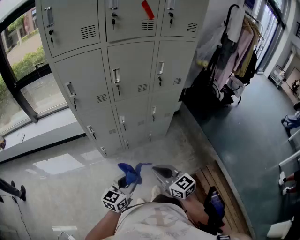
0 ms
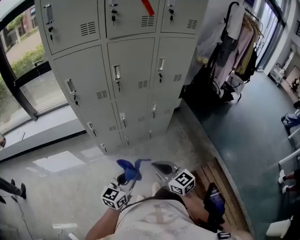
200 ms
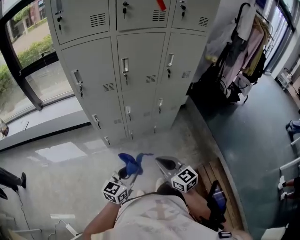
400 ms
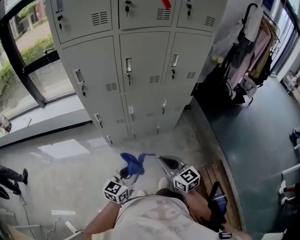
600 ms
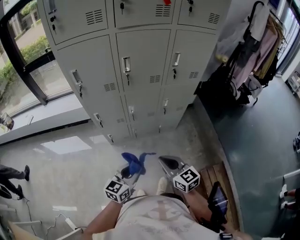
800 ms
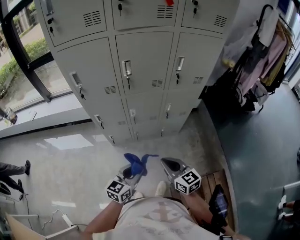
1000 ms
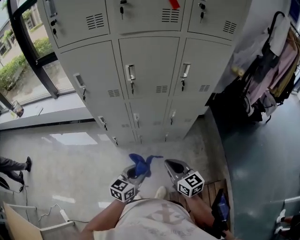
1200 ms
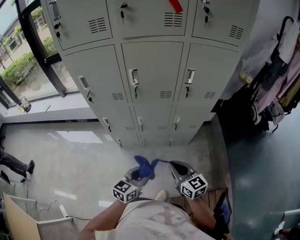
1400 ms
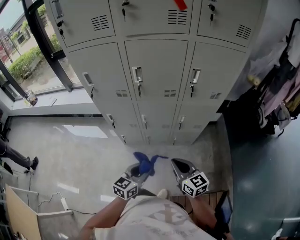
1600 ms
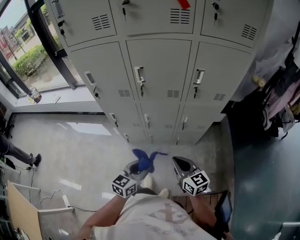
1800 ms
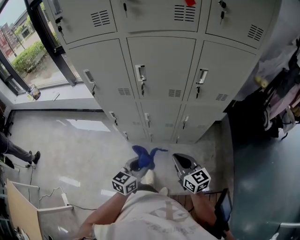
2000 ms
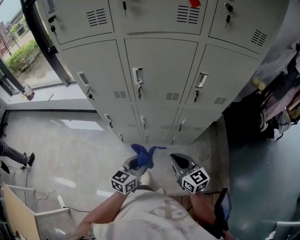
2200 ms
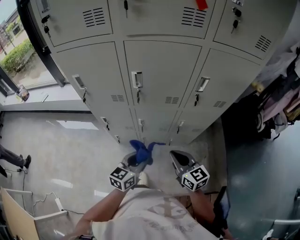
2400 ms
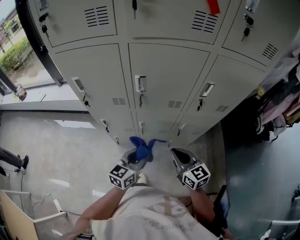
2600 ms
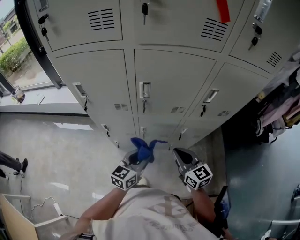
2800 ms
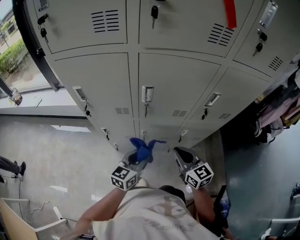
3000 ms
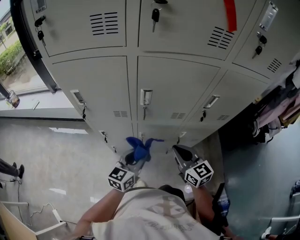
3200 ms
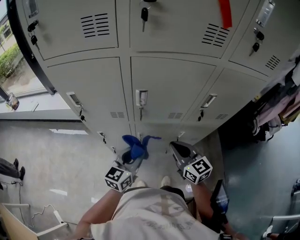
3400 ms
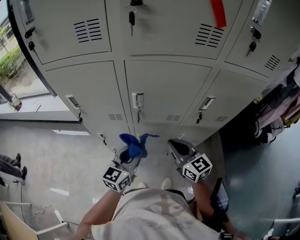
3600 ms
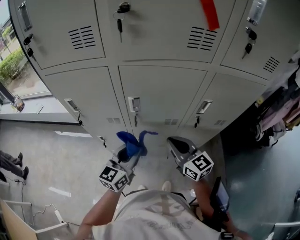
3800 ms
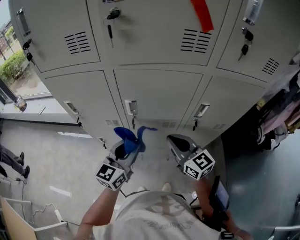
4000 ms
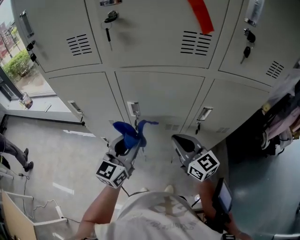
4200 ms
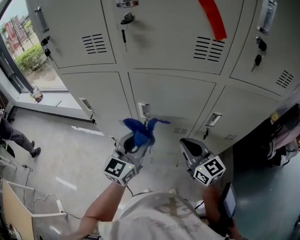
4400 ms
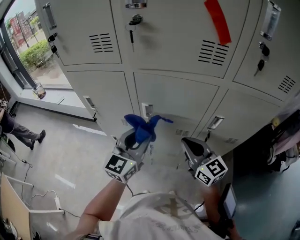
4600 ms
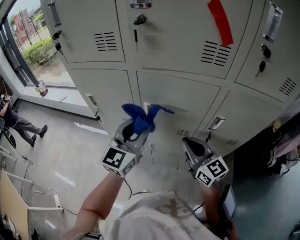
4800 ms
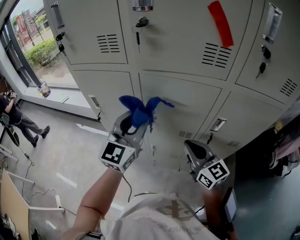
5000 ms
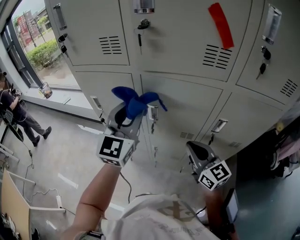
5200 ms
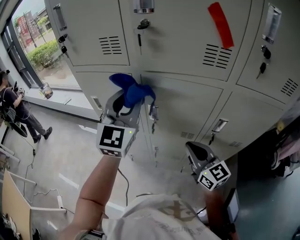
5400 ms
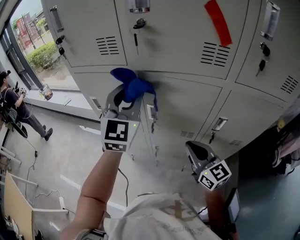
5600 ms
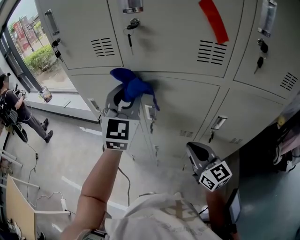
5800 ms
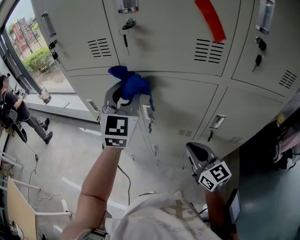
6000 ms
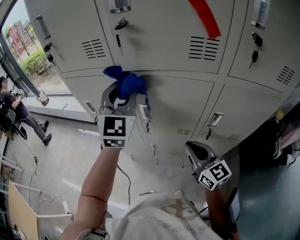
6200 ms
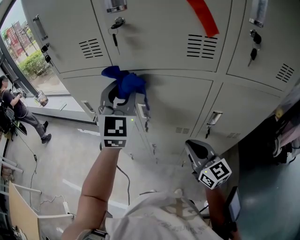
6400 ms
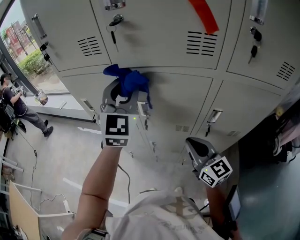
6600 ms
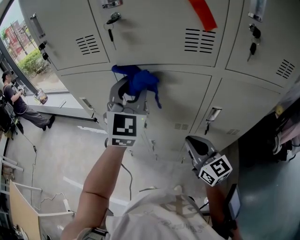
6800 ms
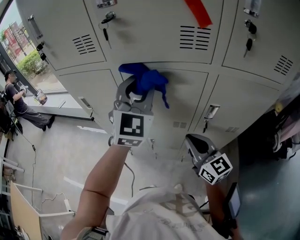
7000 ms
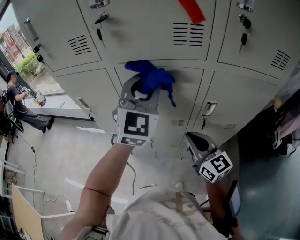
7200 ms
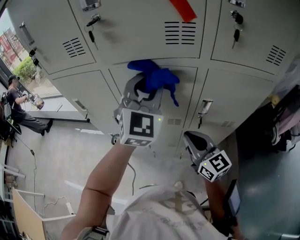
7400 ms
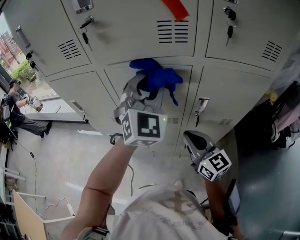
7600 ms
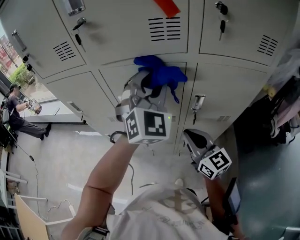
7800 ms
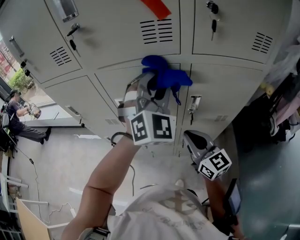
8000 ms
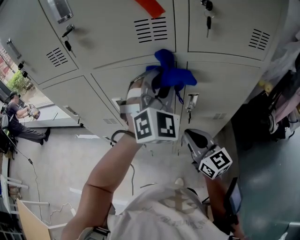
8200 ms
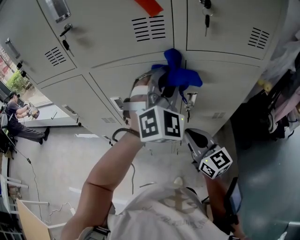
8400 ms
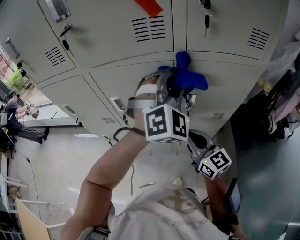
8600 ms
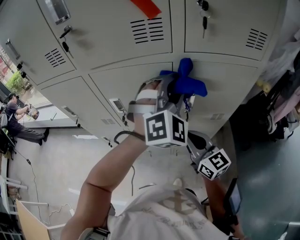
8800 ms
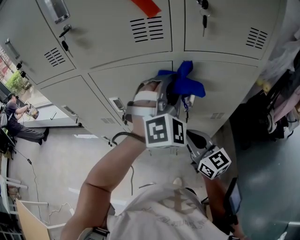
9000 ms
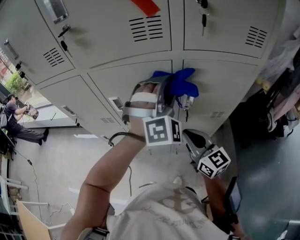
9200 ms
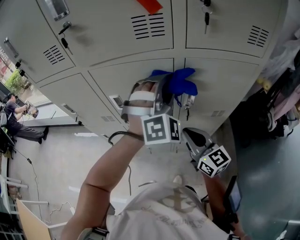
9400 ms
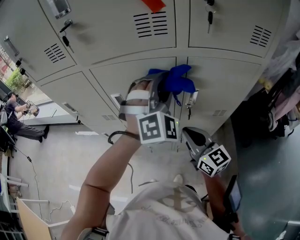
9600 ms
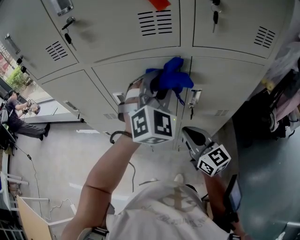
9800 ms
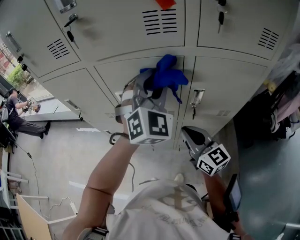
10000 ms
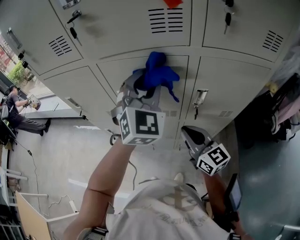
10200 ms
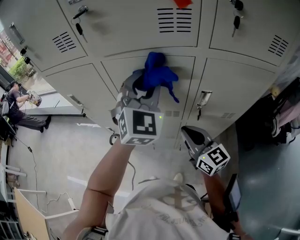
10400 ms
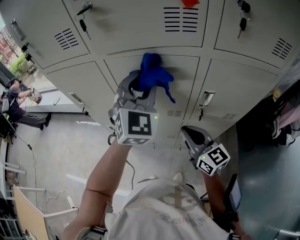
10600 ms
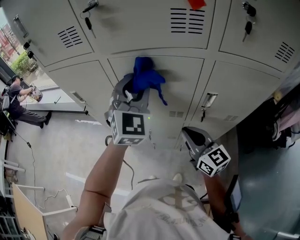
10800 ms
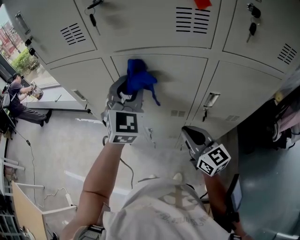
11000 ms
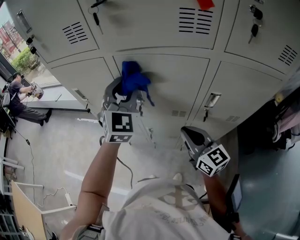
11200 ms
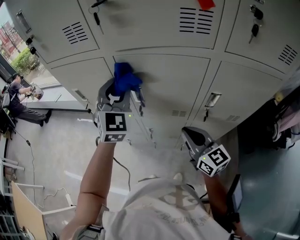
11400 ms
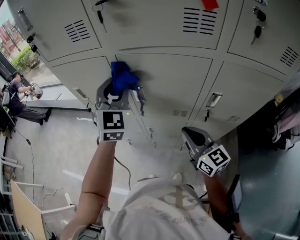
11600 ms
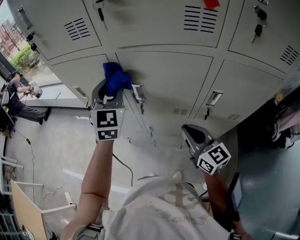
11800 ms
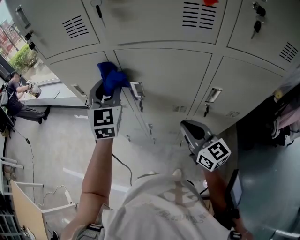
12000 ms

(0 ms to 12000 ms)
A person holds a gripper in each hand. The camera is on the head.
0 ms - 1600 ms: The two grippers go some 20 cm forward and to the right.
1600 ms - 3000 ms: The two grippers go approximately 20 cm forward.
3000 ms - 4400 ms: The two grippers go about 15 cm upward and forward. The left gripper swivels roughly 20 degrees.
4400 ms - 6000 ms: The left gripper heads upward and forward, covering approximately 20 cm, and changes its angle by roughly 40 degrees.
6000 ms - 7600 ms: The left gripper heads to the right, covering about 15 cm.
7600 ms - 9000 ms: The left gripper is displaced to the right by approximately 10 cm, and swivels roughly 20 degrees.
9000 ms - 10400 ms: The left gripper moves to the left, approximately 15 cm, and turns by roughly 30 degrees. The right gripper travels to the left by approximately 5 cm.
10400 ms - 12000 ms: The left gripper moves to the left, some 20 cm, and swivels approximately 20 degrees.

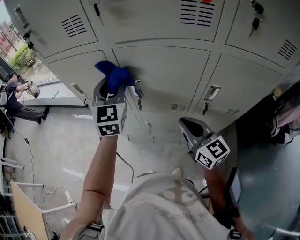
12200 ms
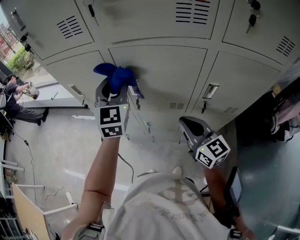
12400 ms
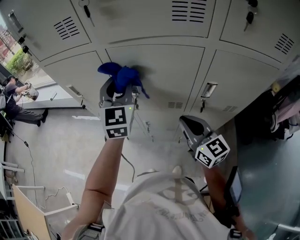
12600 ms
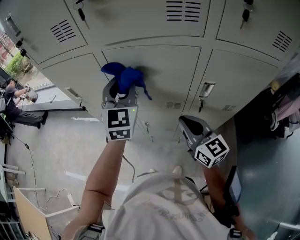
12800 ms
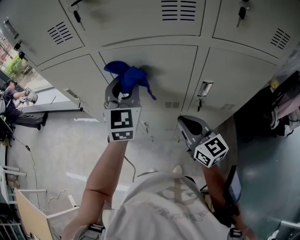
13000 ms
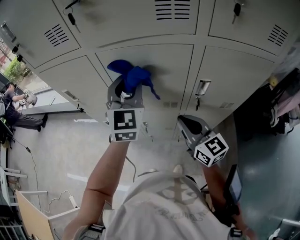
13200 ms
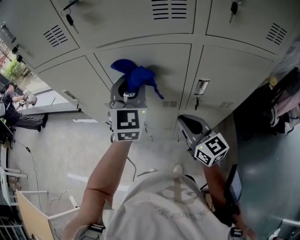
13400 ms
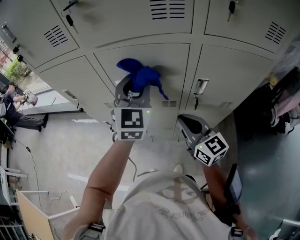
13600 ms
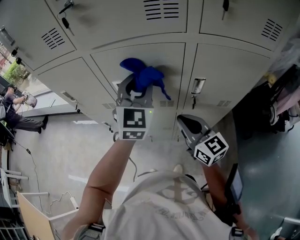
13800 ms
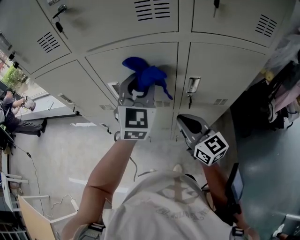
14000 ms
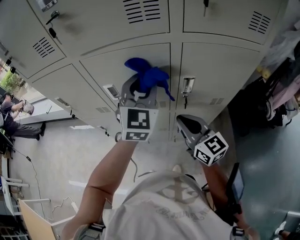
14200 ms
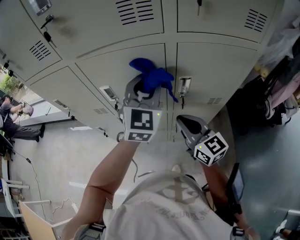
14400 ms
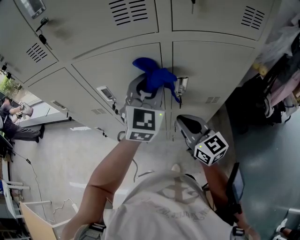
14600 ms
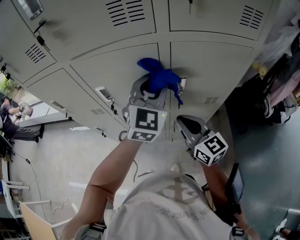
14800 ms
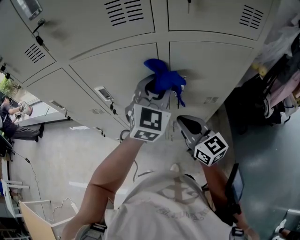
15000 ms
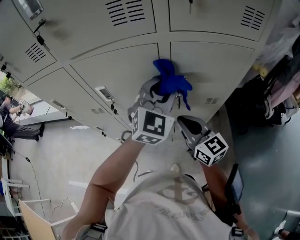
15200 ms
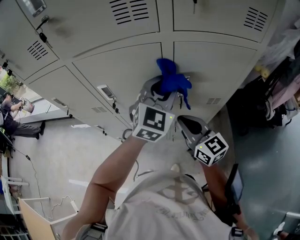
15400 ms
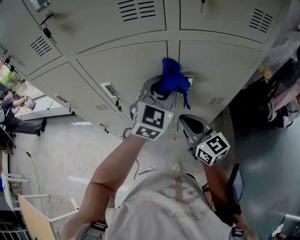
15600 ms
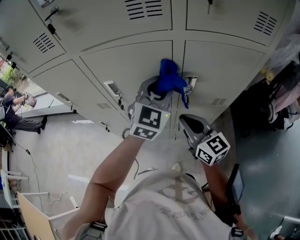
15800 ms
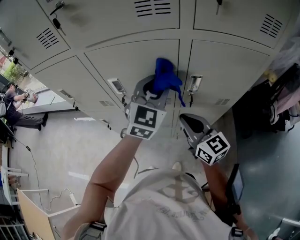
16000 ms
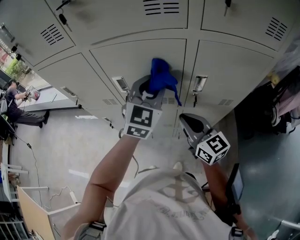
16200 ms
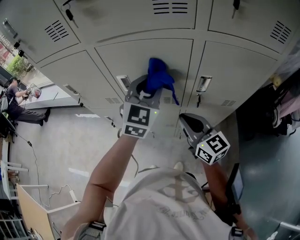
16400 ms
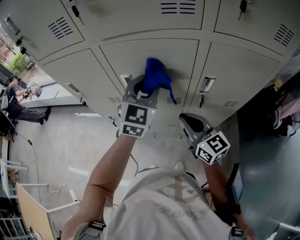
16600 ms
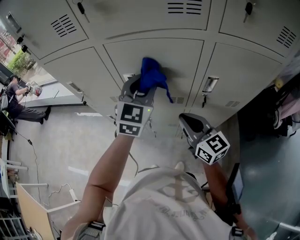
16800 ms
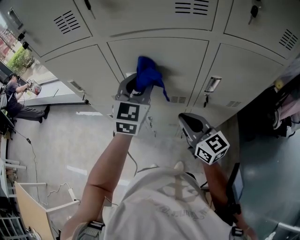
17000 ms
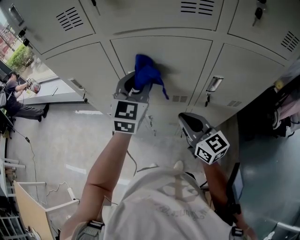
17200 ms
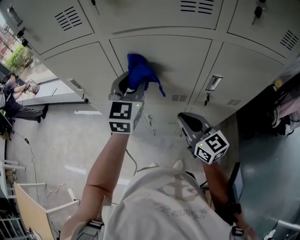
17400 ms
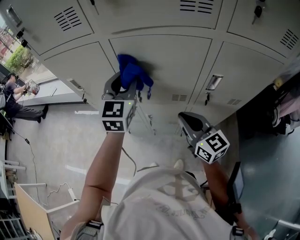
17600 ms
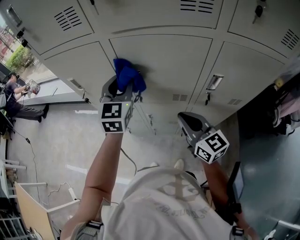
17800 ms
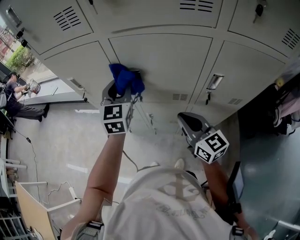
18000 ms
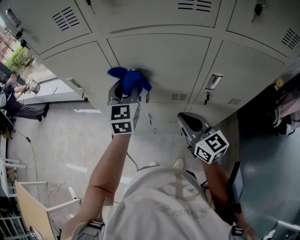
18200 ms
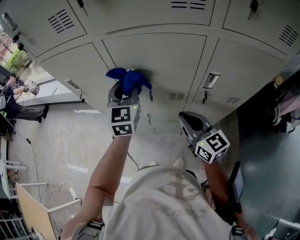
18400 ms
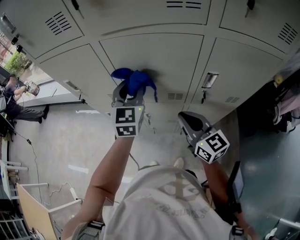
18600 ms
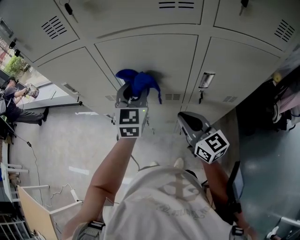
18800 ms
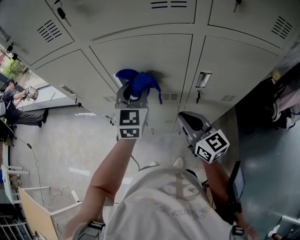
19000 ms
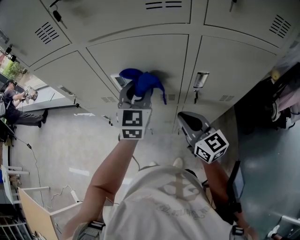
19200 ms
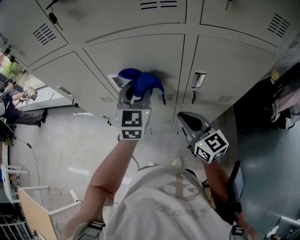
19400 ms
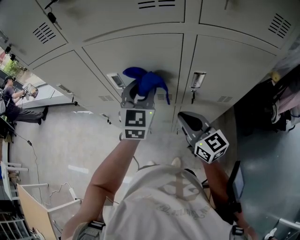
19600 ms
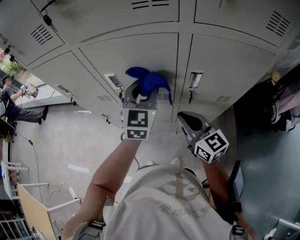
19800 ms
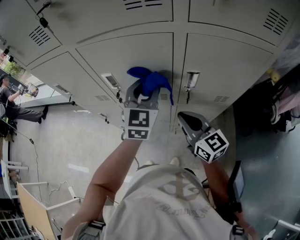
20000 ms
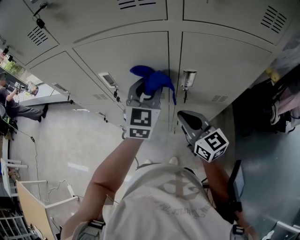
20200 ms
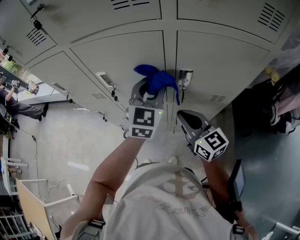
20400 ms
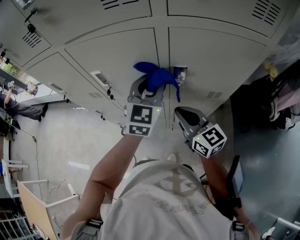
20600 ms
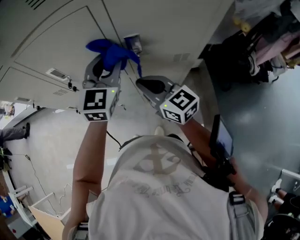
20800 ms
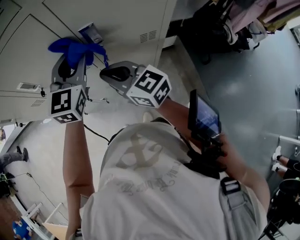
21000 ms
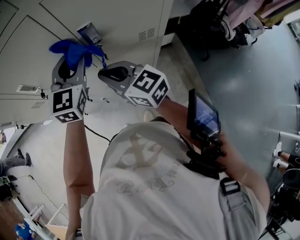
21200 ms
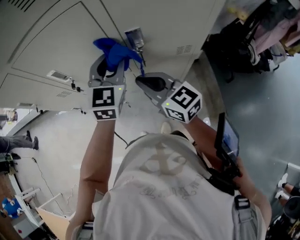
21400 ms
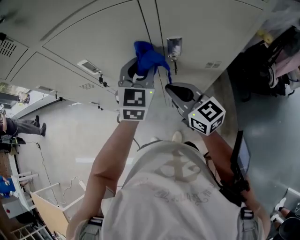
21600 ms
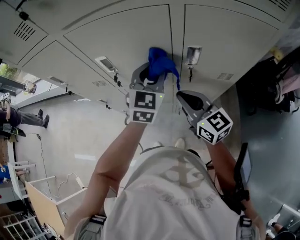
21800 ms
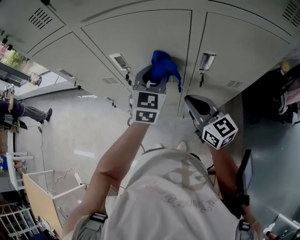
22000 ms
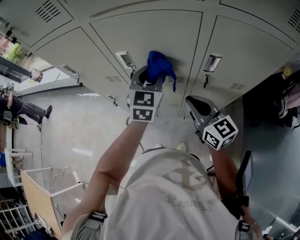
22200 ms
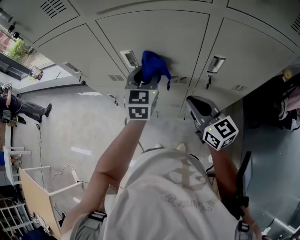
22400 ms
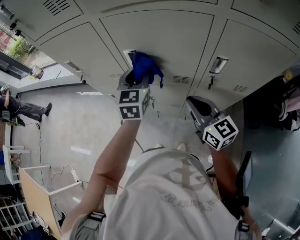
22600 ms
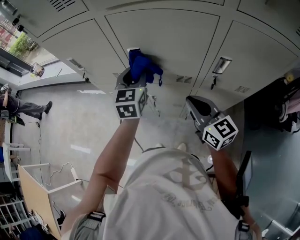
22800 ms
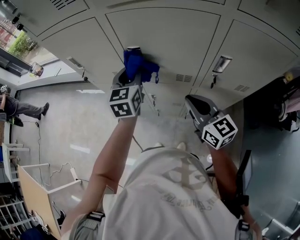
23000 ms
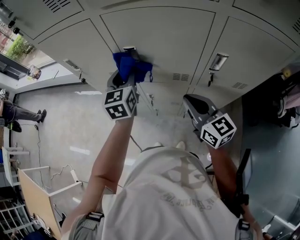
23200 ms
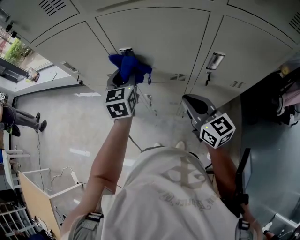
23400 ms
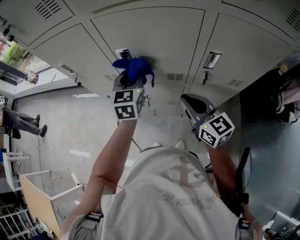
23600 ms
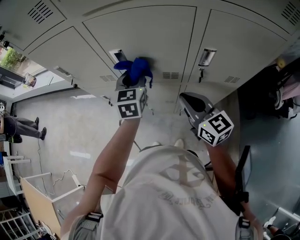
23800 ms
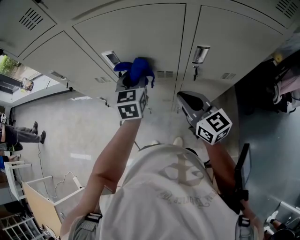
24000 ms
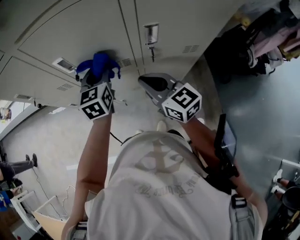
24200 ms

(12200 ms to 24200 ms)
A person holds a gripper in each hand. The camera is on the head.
12200 ms - 13800 ms: The left gripper is displaced to the right by some 15 cm.
13800 ms - 15200 ms: The right gripper heads to the right, covering about 5 cm. Meanwhile the left gripper is displaced to the right by approximately 15 cm.
15200 ms - 16600 ms: The left gripper moves to the left, roughly 15 cm. The right gripper moves to the left, approximately 10 cm.
16600 ms - 18200 ms: The left gripper heads to the left, covering some 10 cm, and swivels some 20 degrees.
18200 ms - 19800 ms: The left gripper travels to the right by roughly 15 cm, while the right gripper shifts approximately 5 cm to the right.
19800 ms - 21200 ms: The left gripper heads to the right, covering about 10 cm.
21200 ms - 22600 ms: The right gripper heads to the left, covering approximately 5 cm, while the left gripper goes some 20 cm to the left, and turns by some 30 degrees.
22600 ms - 24200 ms: The left gripper goes some 5 cm to the right.
